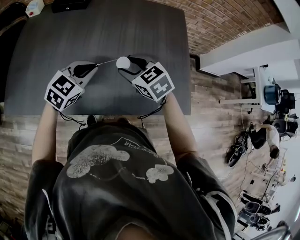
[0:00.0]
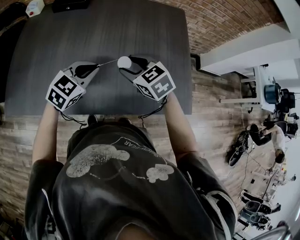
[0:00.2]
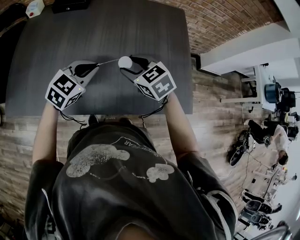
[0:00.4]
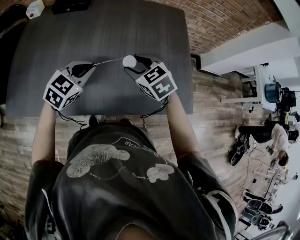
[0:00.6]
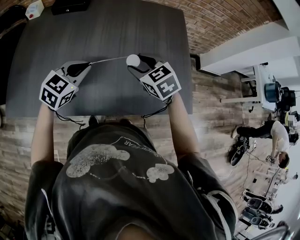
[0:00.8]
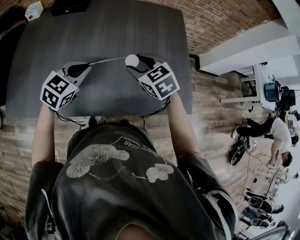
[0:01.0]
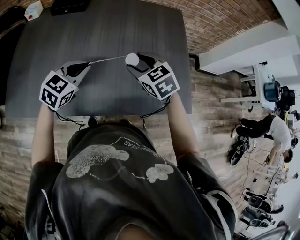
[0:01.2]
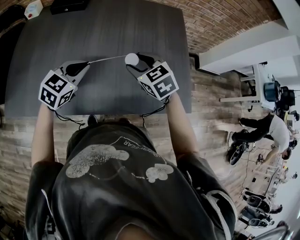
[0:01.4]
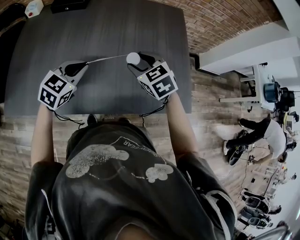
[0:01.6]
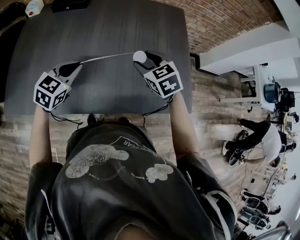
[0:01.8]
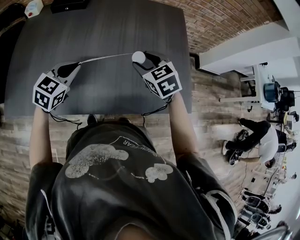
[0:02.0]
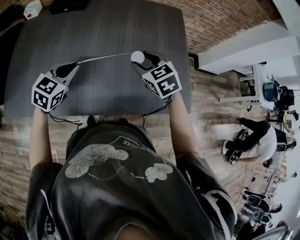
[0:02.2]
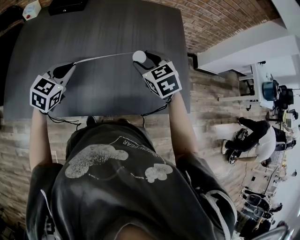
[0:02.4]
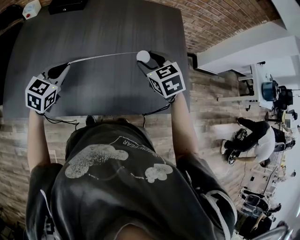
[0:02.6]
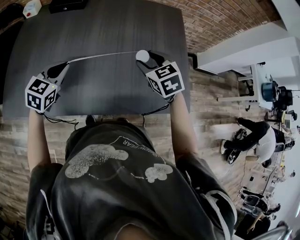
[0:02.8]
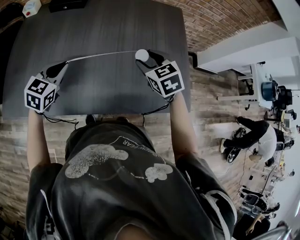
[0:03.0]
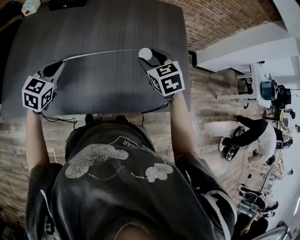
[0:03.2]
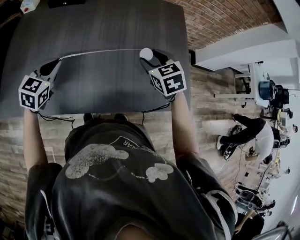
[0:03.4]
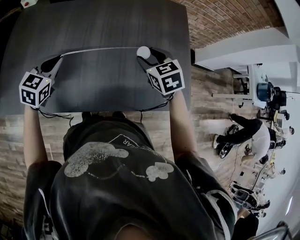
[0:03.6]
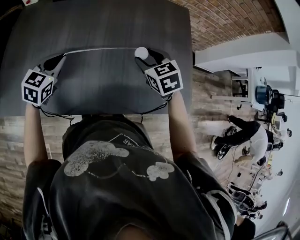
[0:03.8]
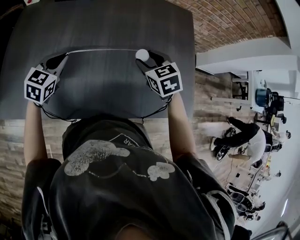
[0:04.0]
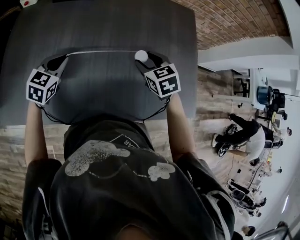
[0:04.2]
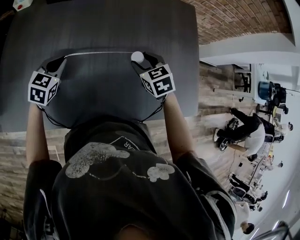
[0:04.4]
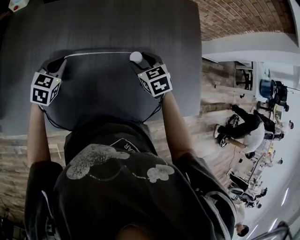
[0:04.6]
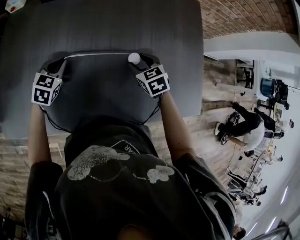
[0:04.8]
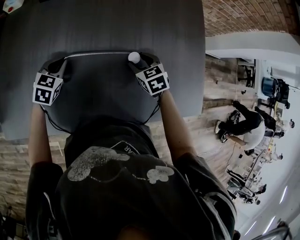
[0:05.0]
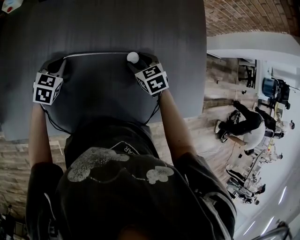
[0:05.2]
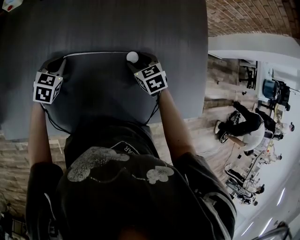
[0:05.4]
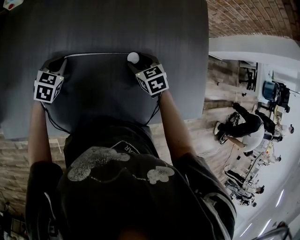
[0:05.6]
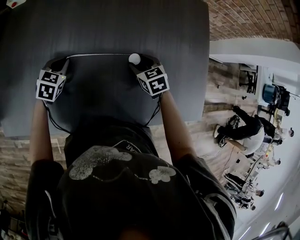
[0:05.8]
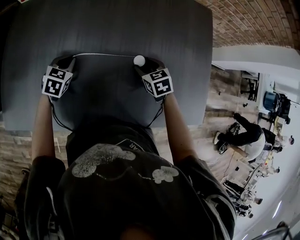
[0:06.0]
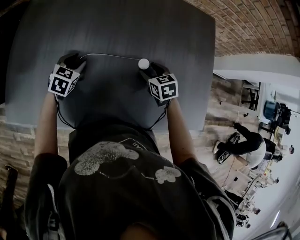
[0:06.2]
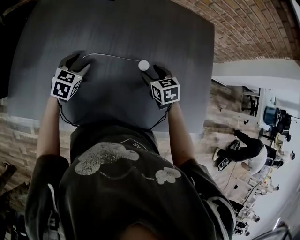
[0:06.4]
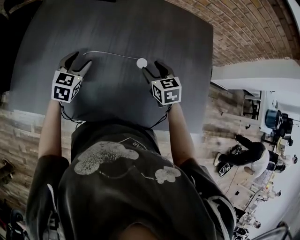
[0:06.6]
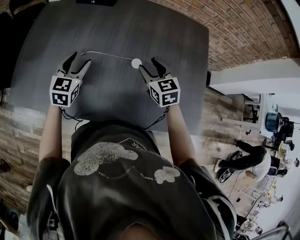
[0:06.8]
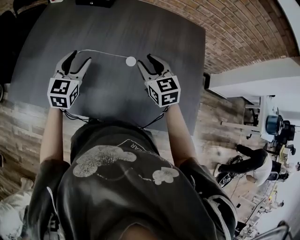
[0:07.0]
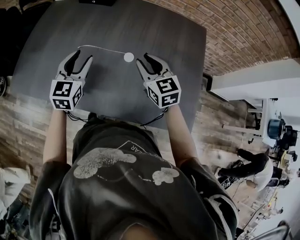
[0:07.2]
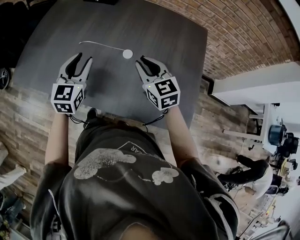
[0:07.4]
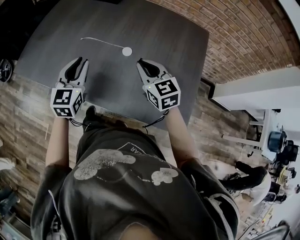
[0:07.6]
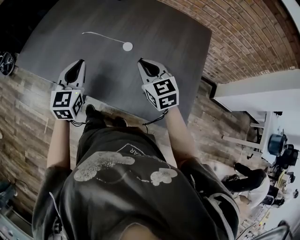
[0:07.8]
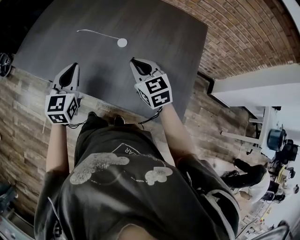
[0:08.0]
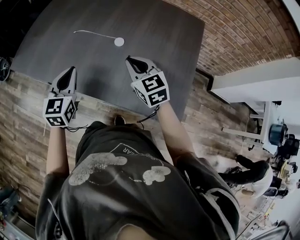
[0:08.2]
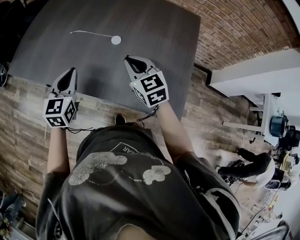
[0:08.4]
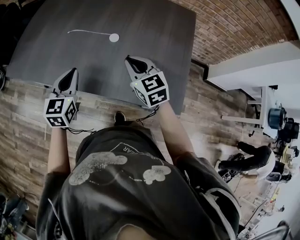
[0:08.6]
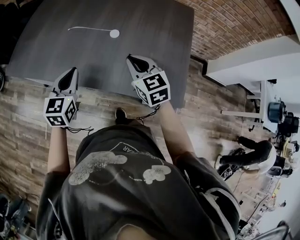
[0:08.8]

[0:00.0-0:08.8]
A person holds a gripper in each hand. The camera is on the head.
0:00.0 to 0:01.4: The grippers make only small movements.
0:01.4 to 0:03.0: The left gripper moves to the left, some 10 cm.
0:03.0 to 0:04.4: The right gripper moves downward, to the left and forward, approximately 15 cm. Meanwhile the left gripper moves forward, to the left and downward, approximately 15 cm.
0:04.4 to 0:05.8: The grippers both shift downward by roughly 10 cm.
0:05.8 to 0:07.4: The left gripper goes some 30 cm upward, backward and to the right, tilts its fingers approximately 40 degrees upward, and opens up. Meanwhile the right gripper goes about 20 cm upward and backward, tips its fingers upward by about 30 degrees, and closes up.
0:07.4 to 0:08.8: Both grippers travel together backward, roughly 10 cm. The left gripper closes.

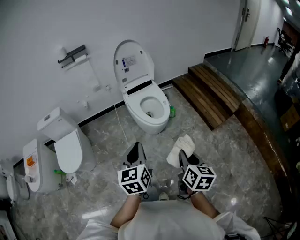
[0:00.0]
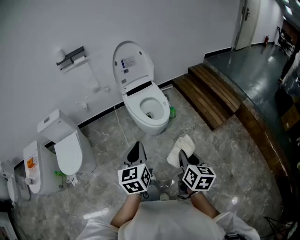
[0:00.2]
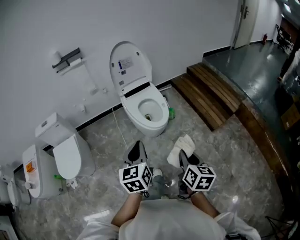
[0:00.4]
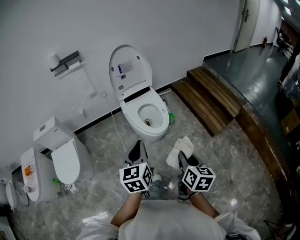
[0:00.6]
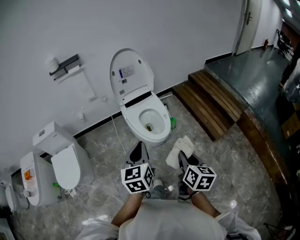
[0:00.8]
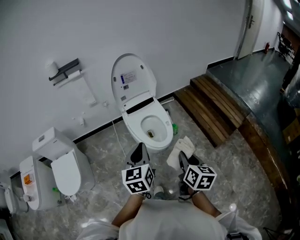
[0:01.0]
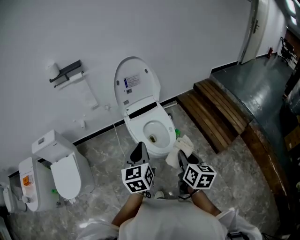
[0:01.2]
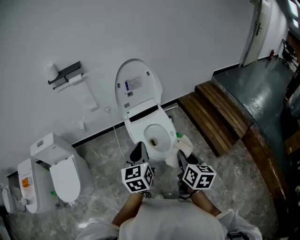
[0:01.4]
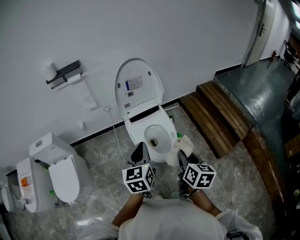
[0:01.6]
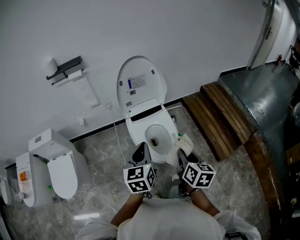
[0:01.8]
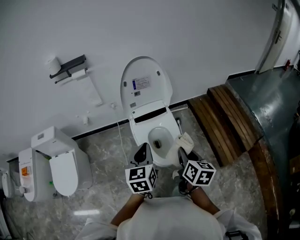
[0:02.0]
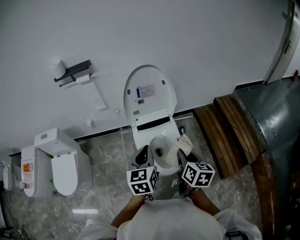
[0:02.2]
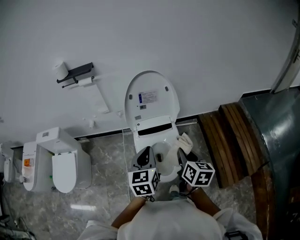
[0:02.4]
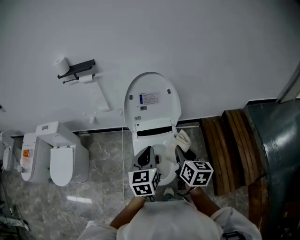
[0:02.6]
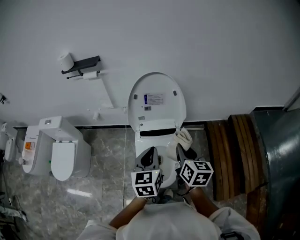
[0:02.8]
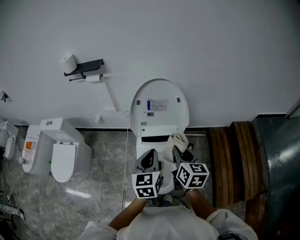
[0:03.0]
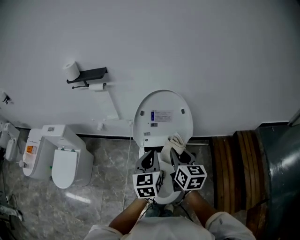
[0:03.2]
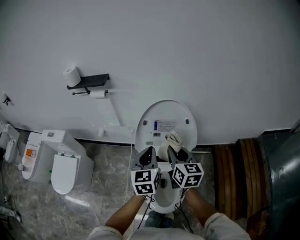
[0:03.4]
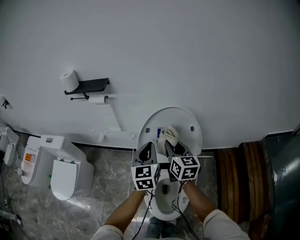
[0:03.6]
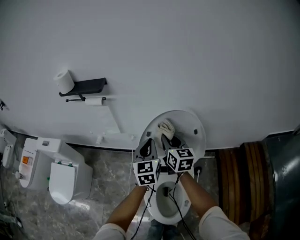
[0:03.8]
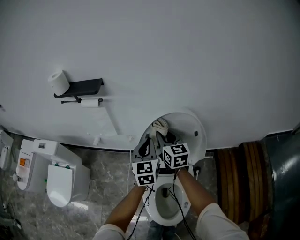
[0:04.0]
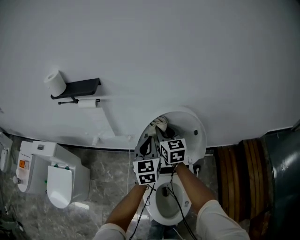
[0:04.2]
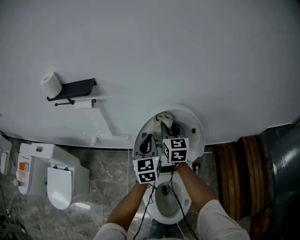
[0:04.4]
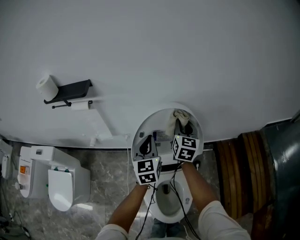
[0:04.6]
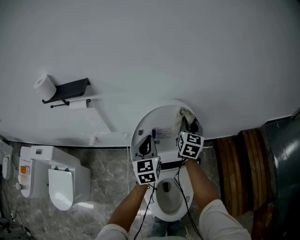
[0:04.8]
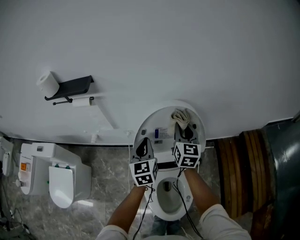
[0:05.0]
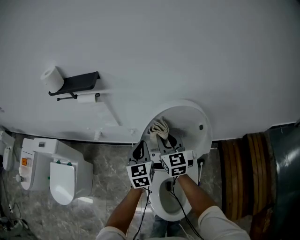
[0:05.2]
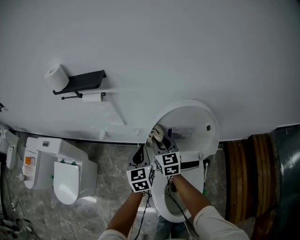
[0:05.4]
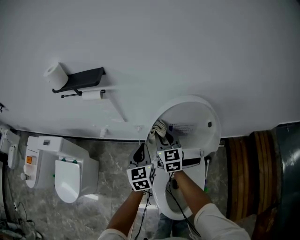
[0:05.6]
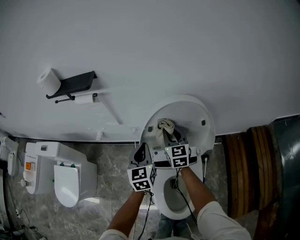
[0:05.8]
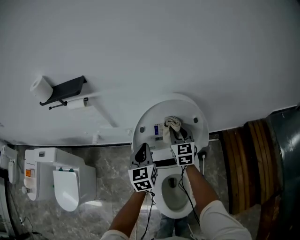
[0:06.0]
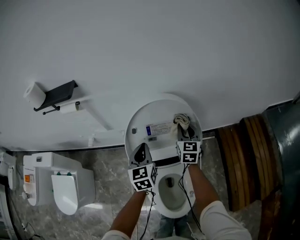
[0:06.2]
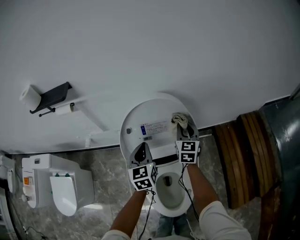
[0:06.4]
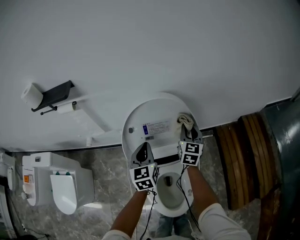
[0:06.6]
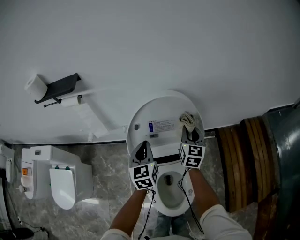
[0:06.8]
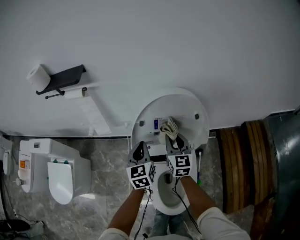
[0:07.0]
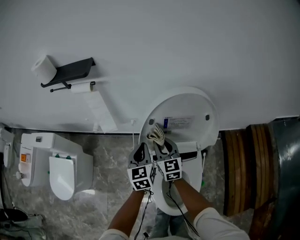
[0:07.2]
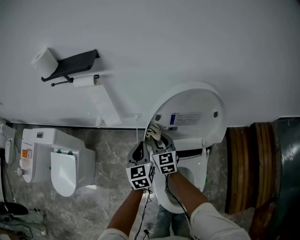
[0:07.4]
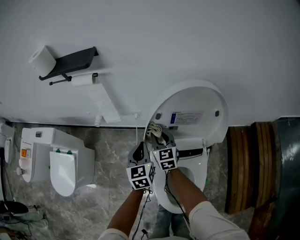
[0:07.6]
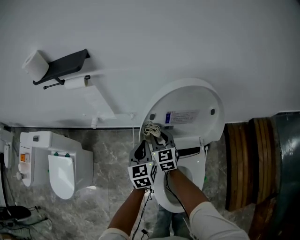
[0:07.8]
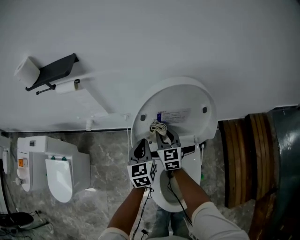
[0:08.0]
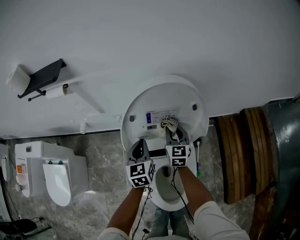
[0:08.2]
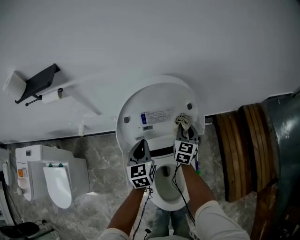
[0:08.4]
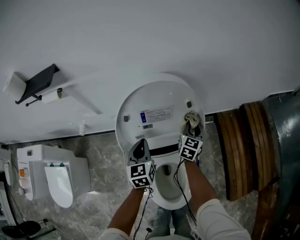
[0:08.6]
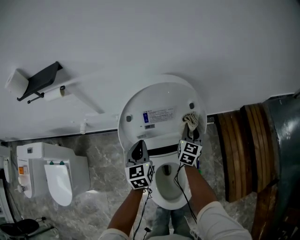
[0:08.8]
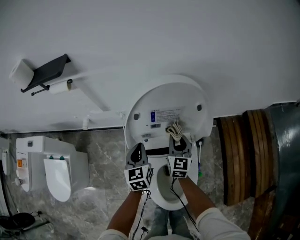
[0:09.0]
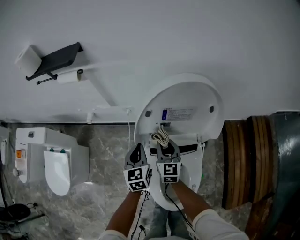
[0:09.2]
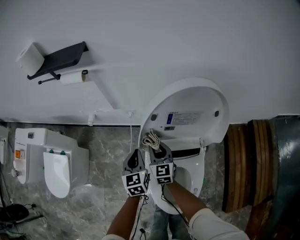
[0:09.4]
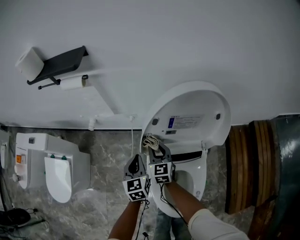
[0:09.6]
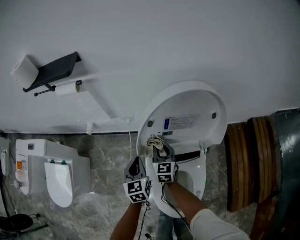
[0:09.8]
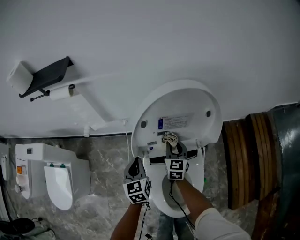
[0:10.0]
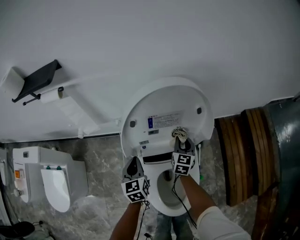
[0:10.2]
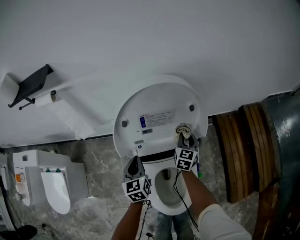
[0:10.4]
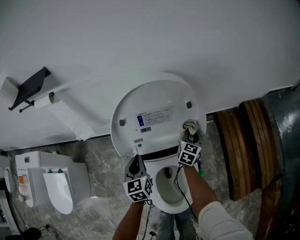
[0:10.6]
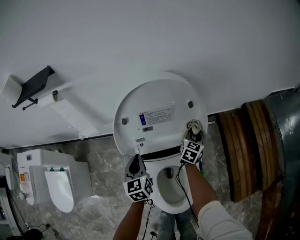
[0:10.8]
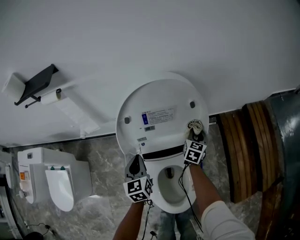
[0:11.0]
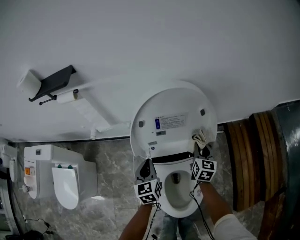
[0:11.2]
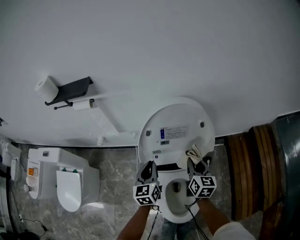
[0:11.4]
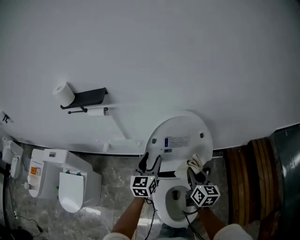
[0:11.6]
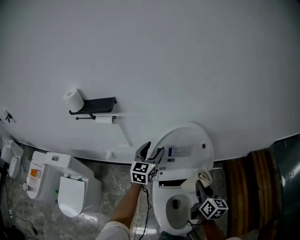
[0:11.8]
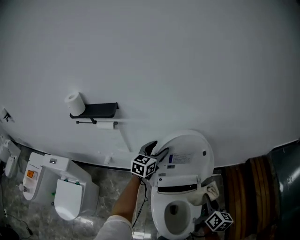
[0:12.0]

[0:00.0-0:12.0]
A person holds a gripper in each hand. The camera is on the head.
0:00.0 to 0:01.6: Both grippers move forward, approximately 35 cm.
0:01.6 to 0:03.0: The right gripper travels forward by about 30 cm, and turns by approximately 30 degrees. The left gripper shifts about 25 cm forward and to the right.
0:03.0 to 0:04.4: The two grippers go some 35 cm forward. The right gripper rotates some 20 degrees.
0:04.4 to 0:06.0: The right gripper goes left and right, roughly 25 cm each way, reversing 2 times; the left gripper shifts about 5 cm downward, and moves about 10 cm to the left and comes back.
0:06.0 to 0:07.6: The right gripper travels to the left and downward by about 20 cm, while the left gripper heads to the left and downward, covering approximately 10 cm.
0:07.6 to 0:09.0: The right gripper rotates approximately 20 degrees.
0:09.0 to 0:10.4: The left gripper is displaced downward by roughly 5 cm, and reaches about 10 cm to the left, then returns, while the right gripper is displaced to the right and downward by approximately 15 cm.
0:10.4 to 0:12.0: The left gripper moves upward and forward, about 25 cm, rotates about 40 degrees, and opens, while the right gripper is displaced upward and backward by roughly 30 cm, and turns by some 40 degrees.

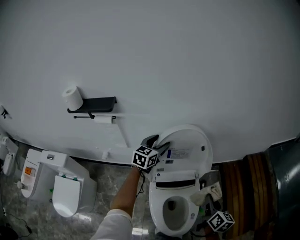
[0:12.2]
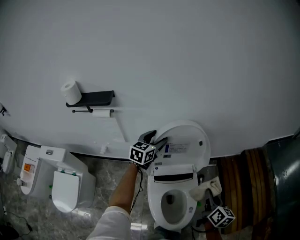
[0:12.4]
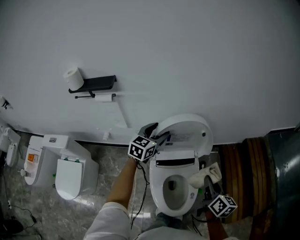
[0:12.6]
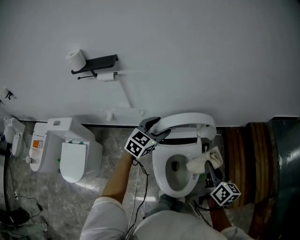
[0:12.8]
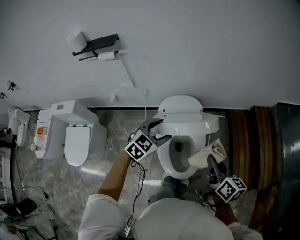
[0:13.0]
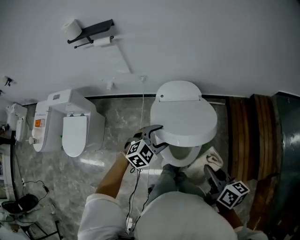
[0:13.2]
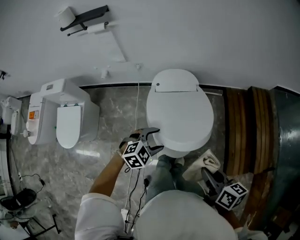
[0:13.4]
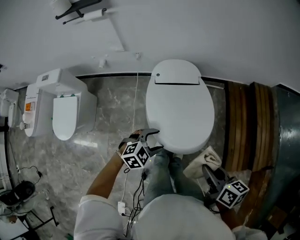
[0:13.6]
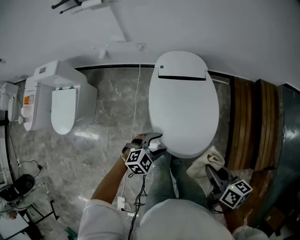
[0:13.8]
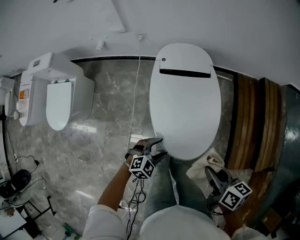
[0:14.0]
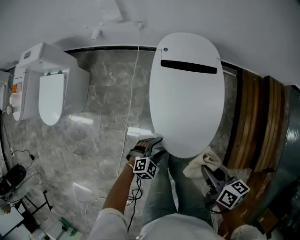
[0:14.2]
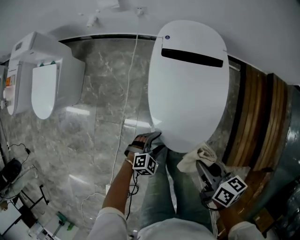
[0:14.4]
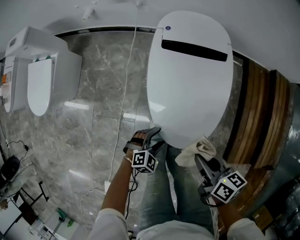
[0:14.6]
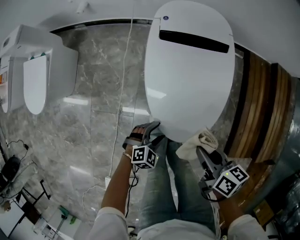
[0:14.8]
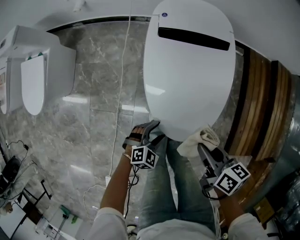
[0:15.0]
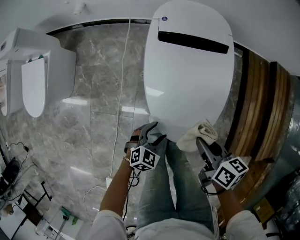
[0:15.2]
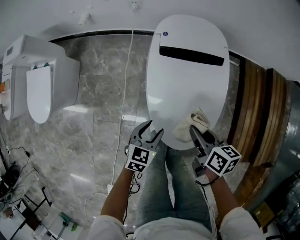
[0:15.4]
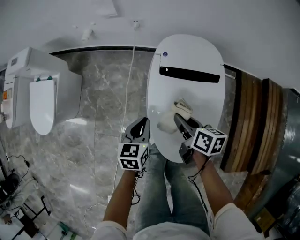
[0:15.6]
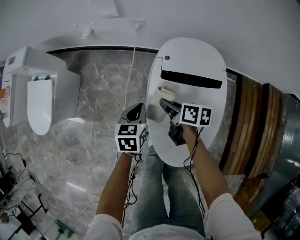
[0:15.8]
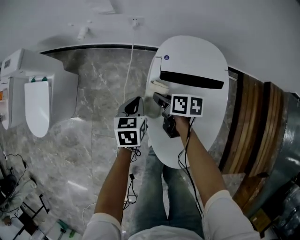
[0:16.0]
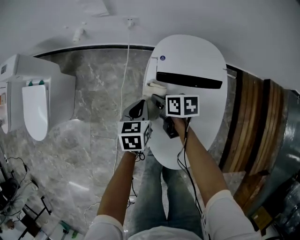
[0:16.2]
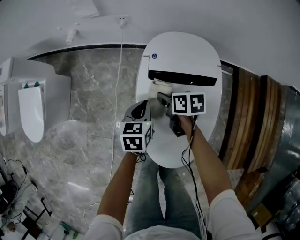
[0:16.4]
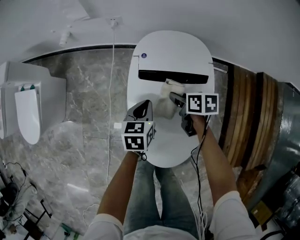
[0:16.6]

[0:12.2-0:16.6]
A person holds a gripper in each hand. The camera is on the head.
0:12.2 to 0:13.6: The left gripper moves backward and downward, approximately 50 cm, and tilts its fingers roughly 30 degrees downward. Meanwhile the right gripper heads backward, covering roughly 30 cm, and turns by some 40 degrees.
0:13.6 to 0:15.2: The grippers both shift downward by roughly 25 cm. The left gripper swivels roughly 30 degrees.
0:15.2 to 0:16.6: Both grippers move forward, roughly 25 cm. The left gripper turns by roughly 40 degrees, and closes up.
